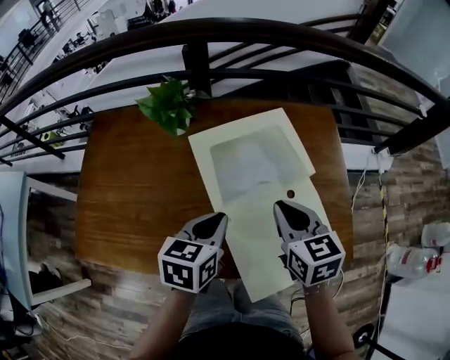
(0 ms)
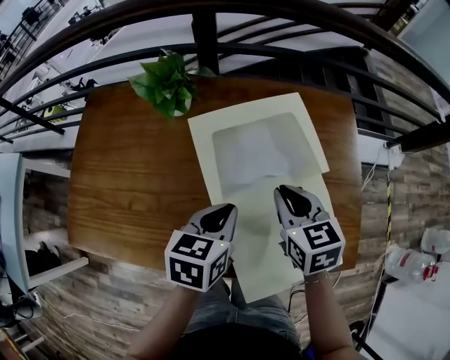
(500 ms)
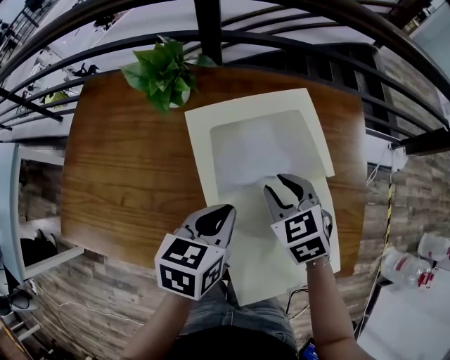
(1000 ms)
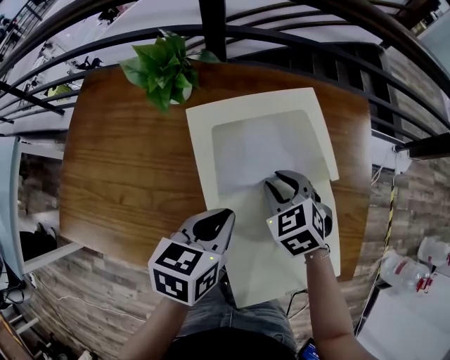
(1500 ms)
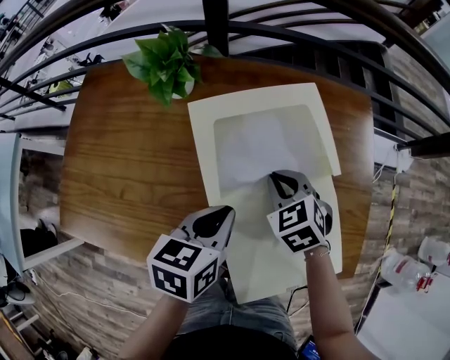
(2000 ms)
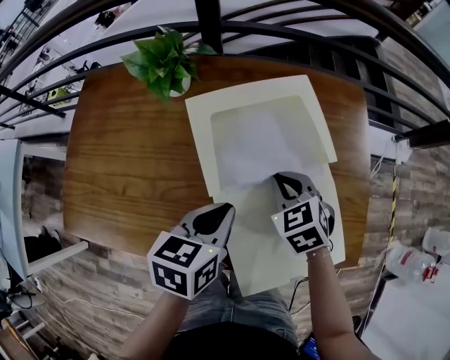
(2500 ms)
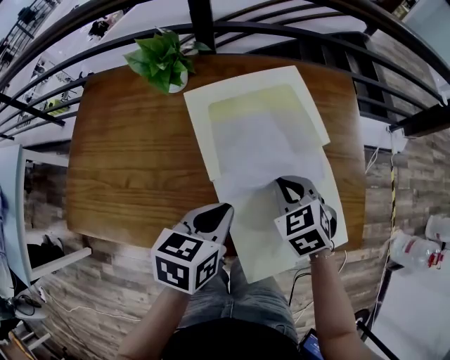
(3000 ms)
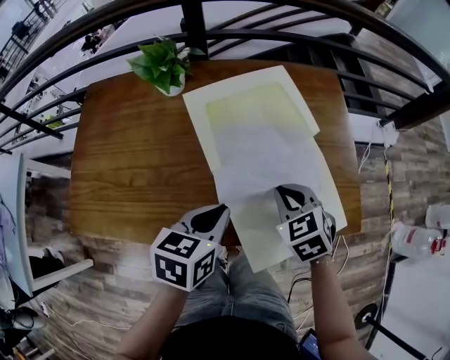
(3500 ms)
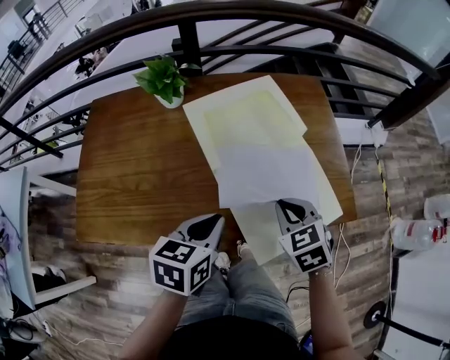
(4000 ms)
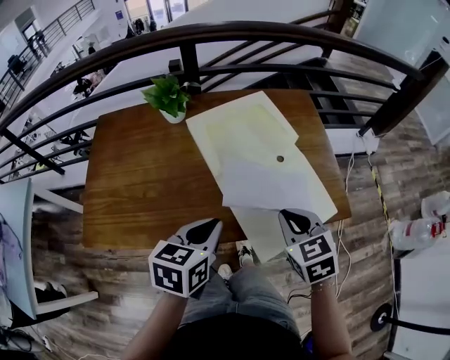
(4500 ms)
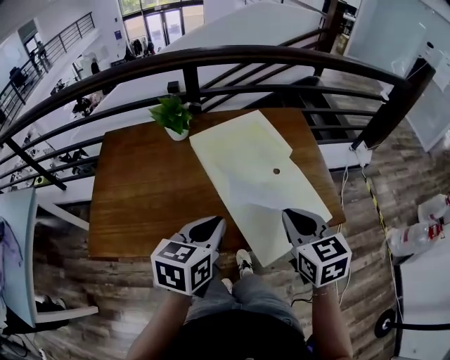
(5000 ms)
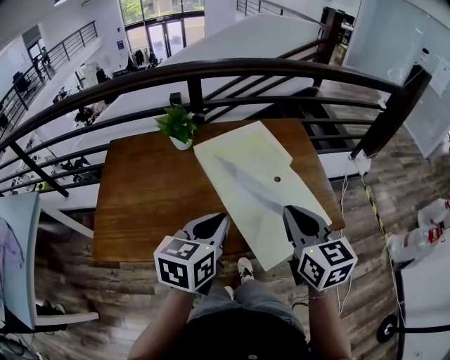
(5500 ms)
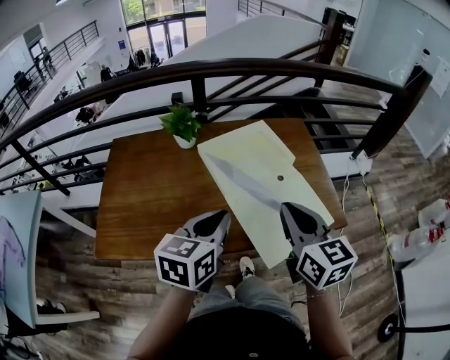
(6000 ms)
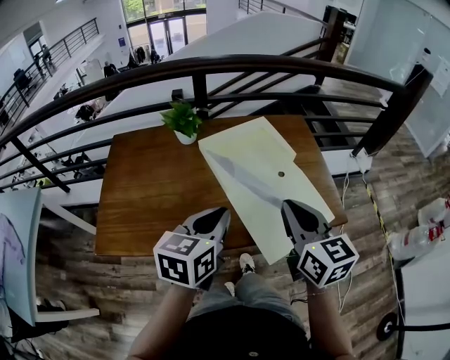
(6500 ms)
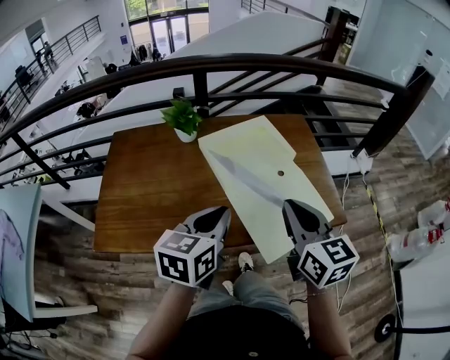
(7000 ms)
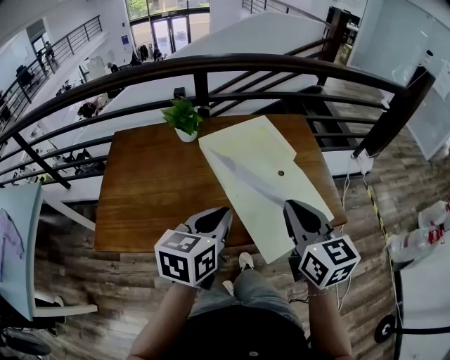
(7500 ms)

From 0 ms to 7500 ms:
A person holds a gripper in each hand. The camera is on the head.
From 0 ms to 2000 ms: The right gripper shifts roughly 15 cm downward and forward, changes its angle by approximately 40 degrees, and opens, then closes once more.
From 2000 ms to 4000 ms: The two grippers go some 15 cm backward.
From 4000 ms to 5500 ms: The left gripper moves upward, roughly 10 cm, while the right gripper goes about 15 cm upward, and points its fingers some 30 degrees further upward.
From 5500 ms to 7500 ms: The grippers move only a little.

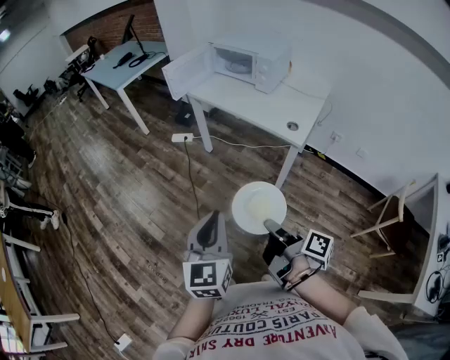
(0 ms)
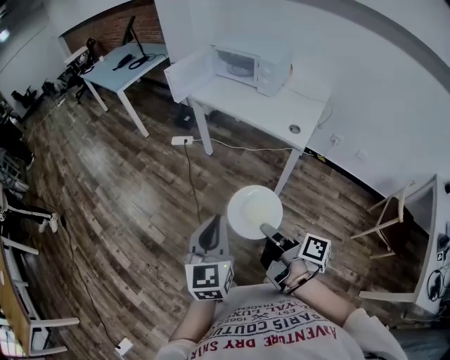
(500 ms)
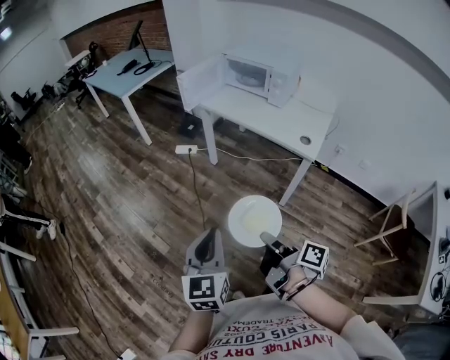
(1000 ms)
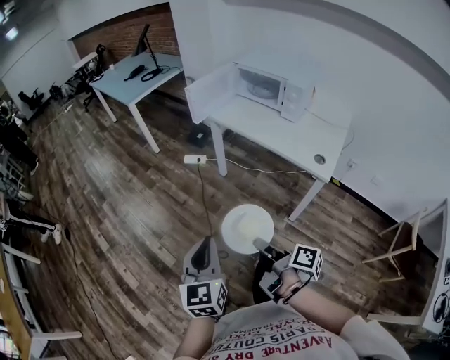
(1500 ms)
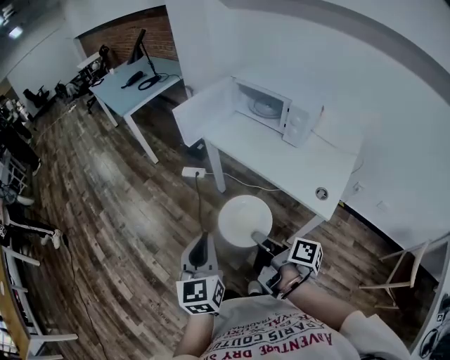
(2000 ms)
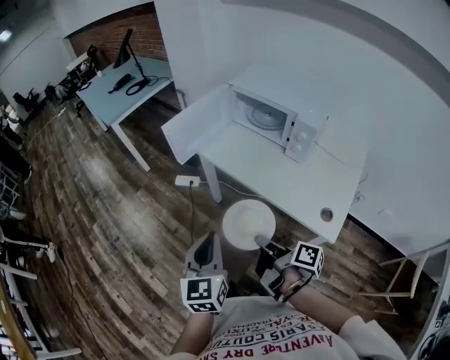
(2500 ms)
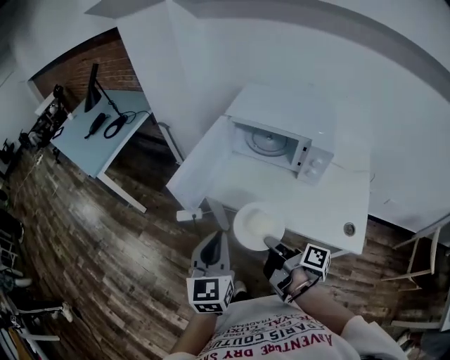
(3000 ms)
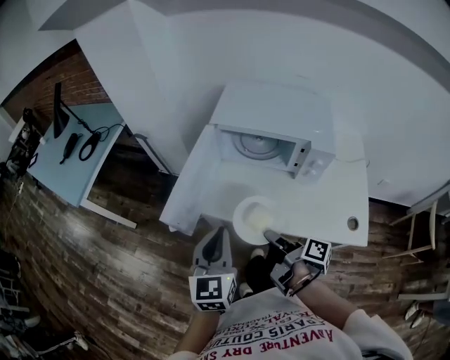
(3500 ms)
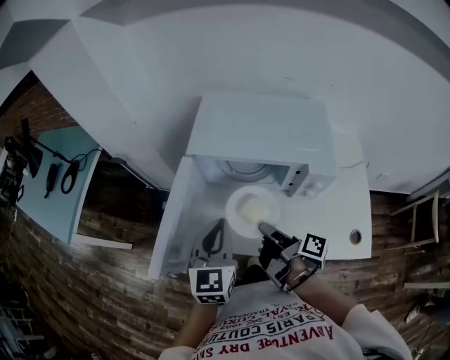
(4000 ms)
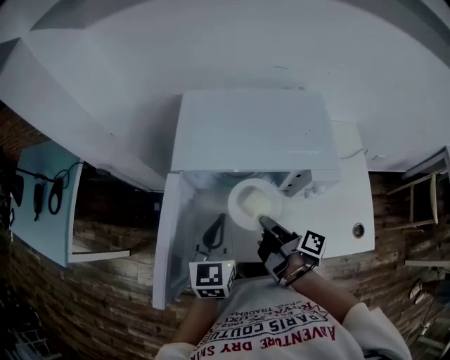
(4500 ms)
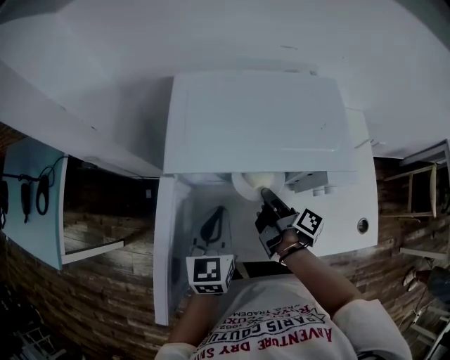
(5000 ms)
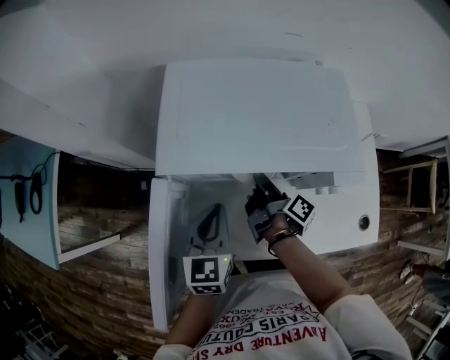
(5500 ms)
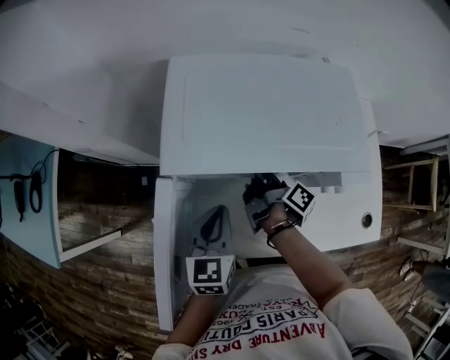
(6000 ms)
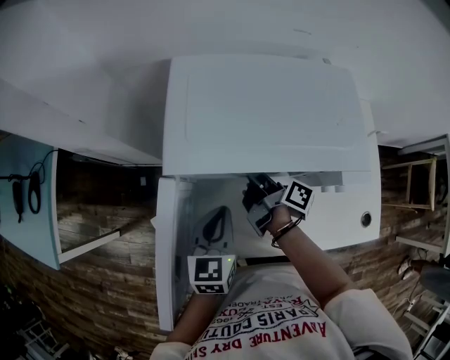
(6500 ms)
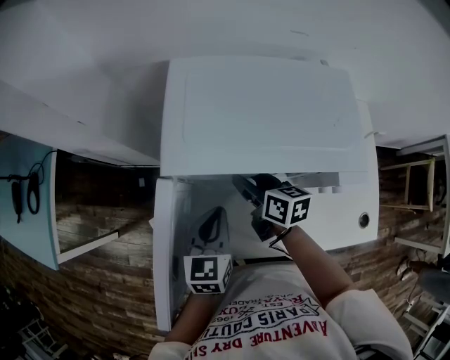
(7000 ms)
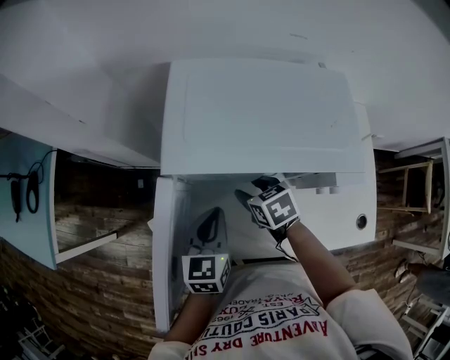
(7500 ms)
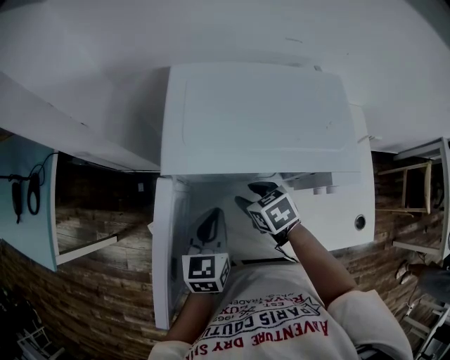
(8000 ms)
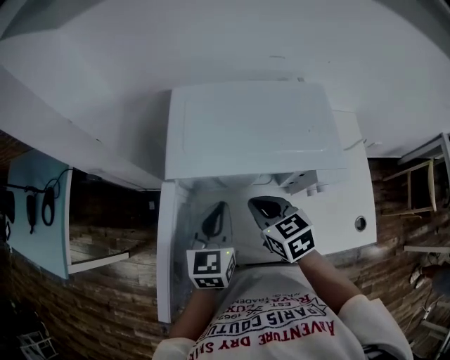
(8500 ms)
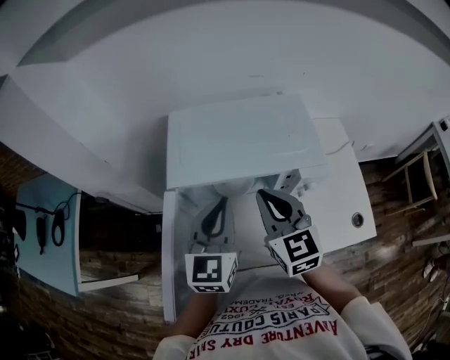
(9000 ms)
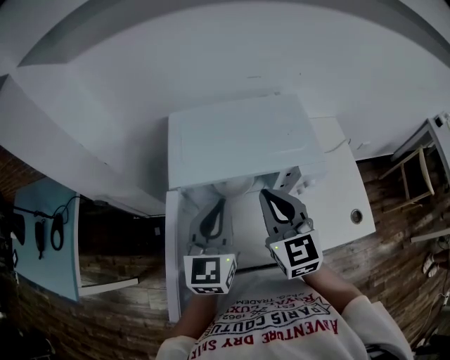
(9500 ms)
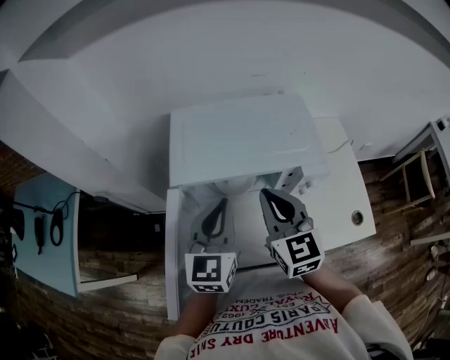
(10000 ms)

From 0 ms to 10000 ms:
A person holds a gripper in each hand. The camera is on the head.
From 0 ms to 2000 ms: The left gripper moves some 30 cm.
From 2000 ms to 4000 ms: The left gripper moves about 60 cm, and swivels some 40 degrees.
From 4000 ms to 6000 ms: The left gripper shifts some 10 cm downward.
From 8000 ms to 10000 ms: The left gripper heads upward, covering about 15 cm, and rotates roughly 20 degrees.

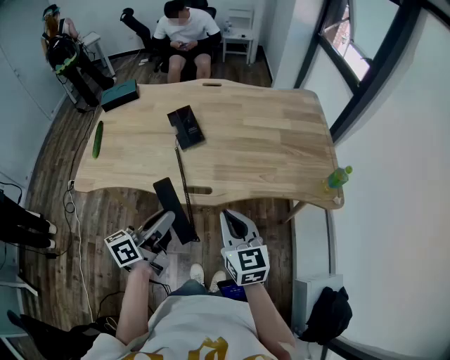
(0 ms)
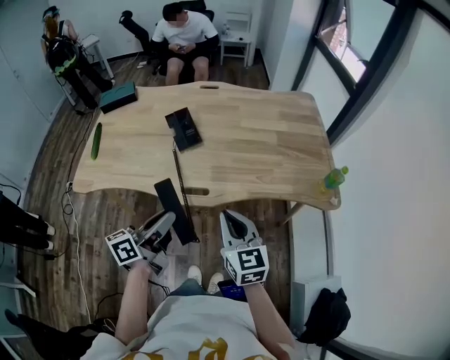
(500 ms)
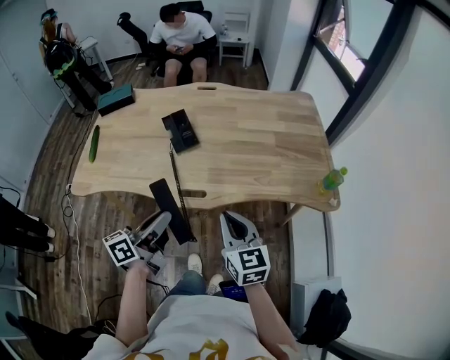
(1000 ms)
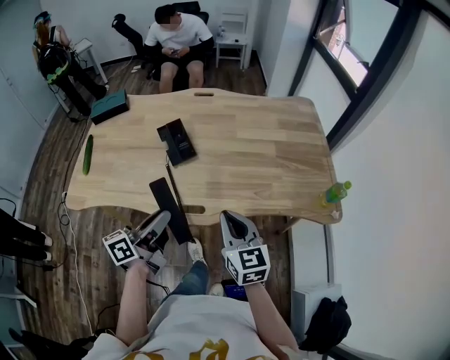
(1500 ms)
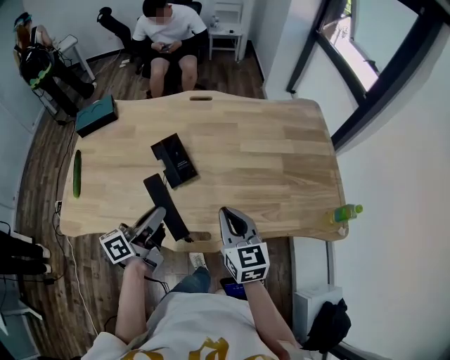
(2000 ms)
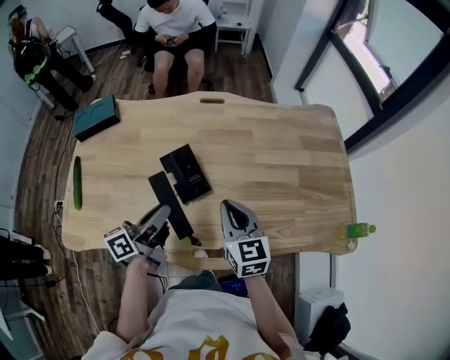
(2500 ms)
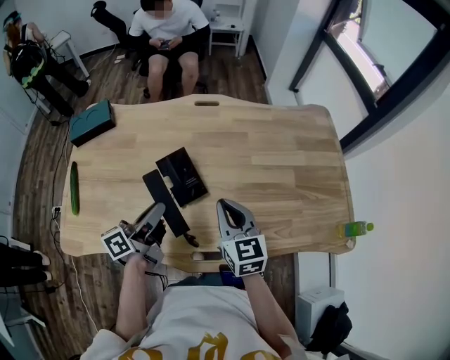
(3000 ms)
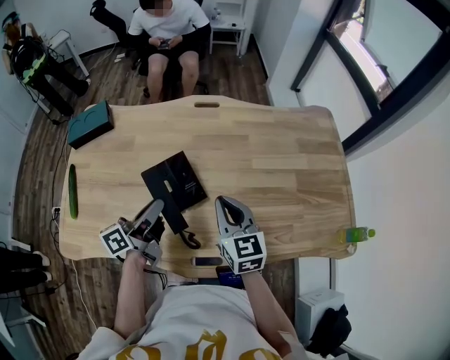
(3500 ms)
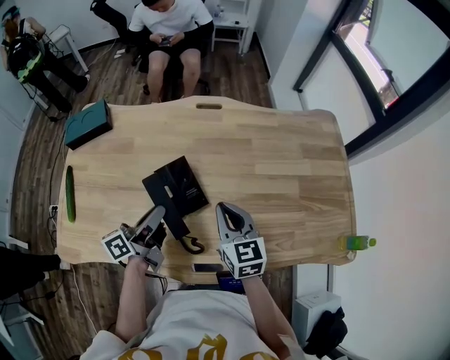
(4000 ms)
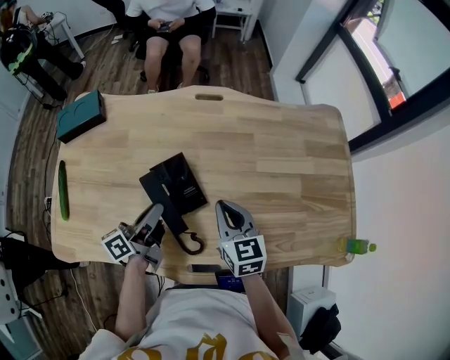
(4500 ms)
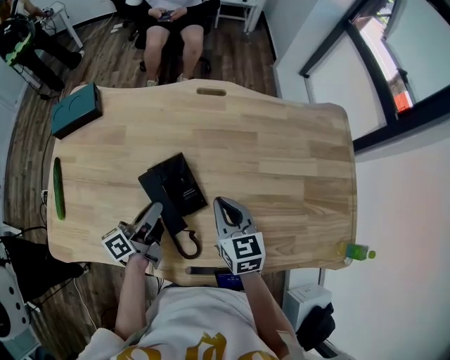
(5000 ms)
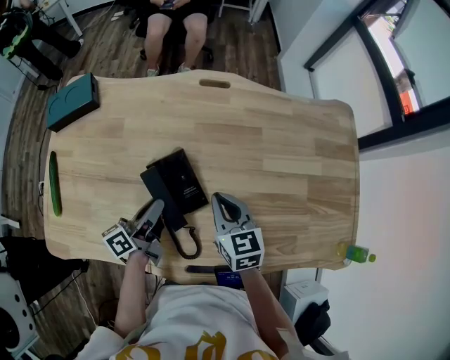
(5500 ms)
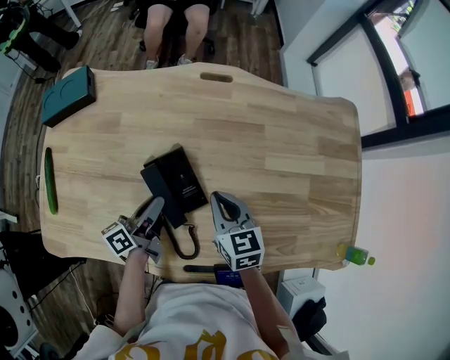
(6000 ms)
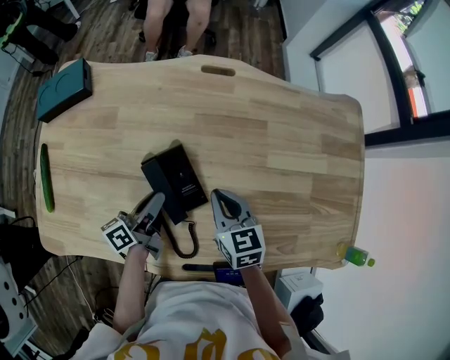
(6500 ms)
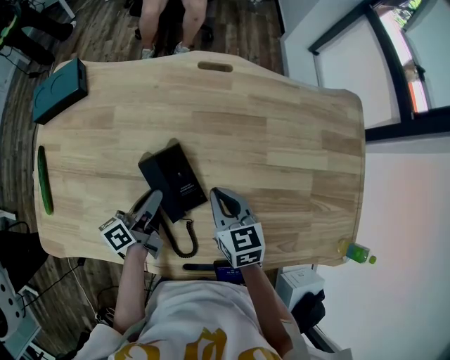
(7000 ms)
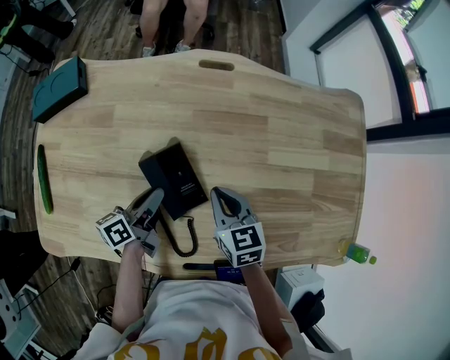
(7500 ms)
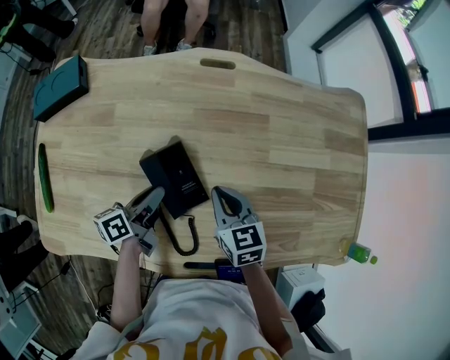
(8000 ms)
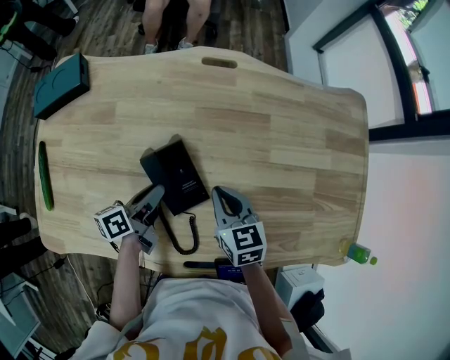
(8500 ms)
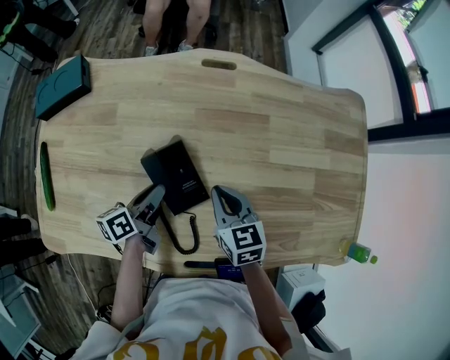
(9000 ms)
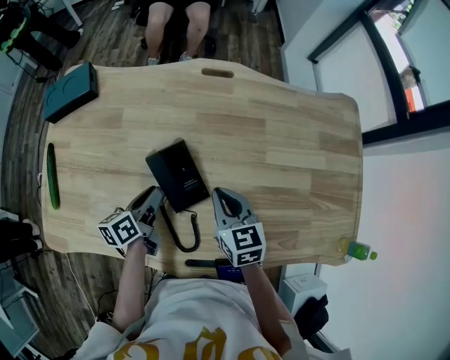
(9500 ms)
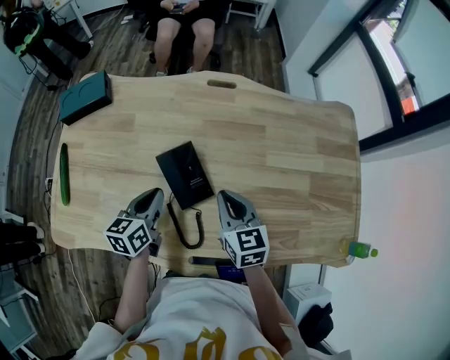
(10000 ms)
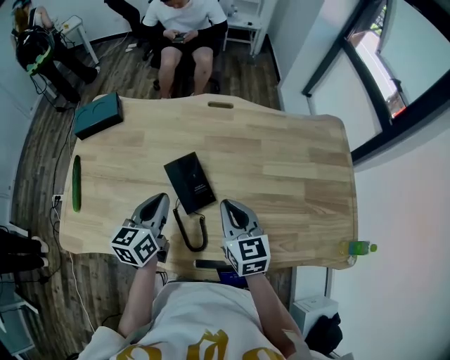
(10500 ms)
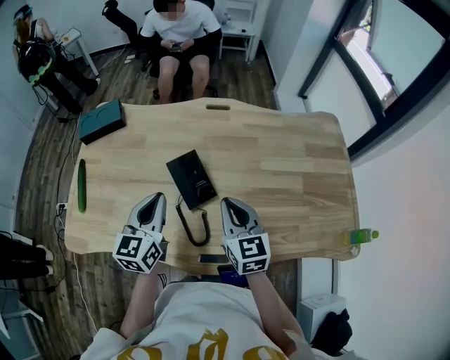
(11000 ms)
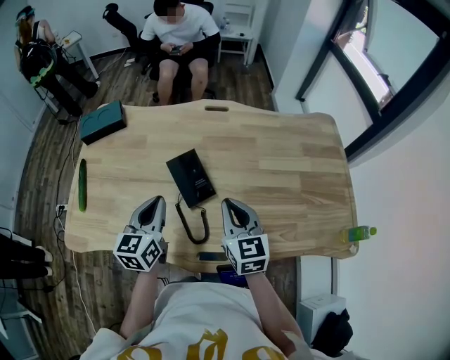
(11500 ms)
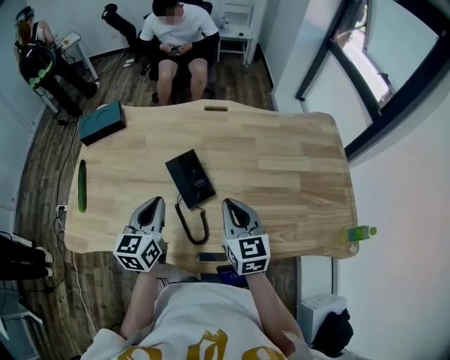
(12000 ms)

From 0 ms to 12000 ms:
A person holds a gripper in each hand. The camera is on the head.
From 0 ms to 2000 ms: The grippers both shift forward by approximately 20 cm.
From 2000 ms to 4000 ms: Both grippers move forward and to the left, approximately 15 cm.
From 4000 ms to 6000 ms: The left gripper moves downward, some 10 cm. Meanwhile the right gripper is displaced downward and forward by roughly 10 cm.
From 6000 ms to 8000 ms: There are only small adjustments of the grippers.
From 8000 ms to 10000 ms: The right gripper moves upward, some 5 cm; the left gripper moves approximately 5 cm, and rotates about 40 degrees.
From 10000 ms to 12000 ms: Both grippers move upward and backward, roughly 10 cm. The left gripper rotates approximately 20 degrees.
